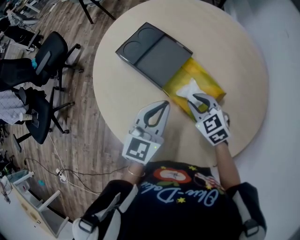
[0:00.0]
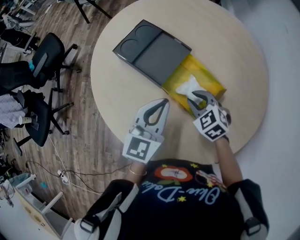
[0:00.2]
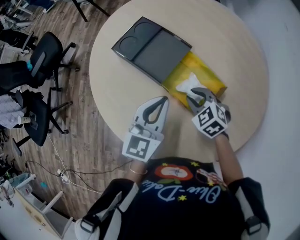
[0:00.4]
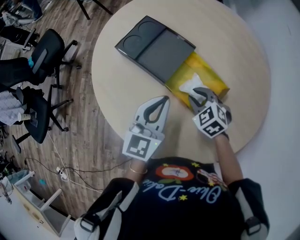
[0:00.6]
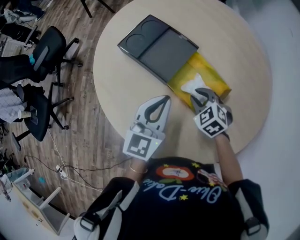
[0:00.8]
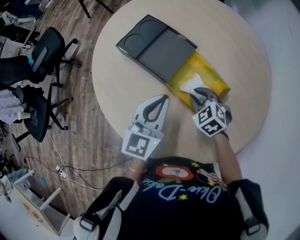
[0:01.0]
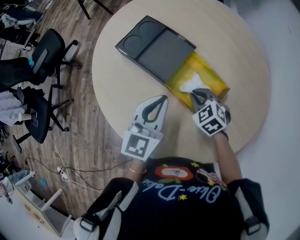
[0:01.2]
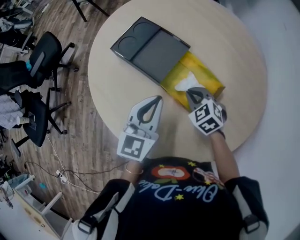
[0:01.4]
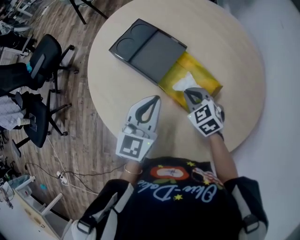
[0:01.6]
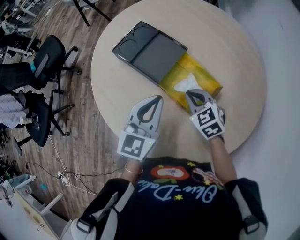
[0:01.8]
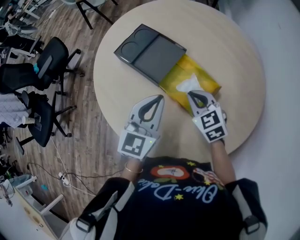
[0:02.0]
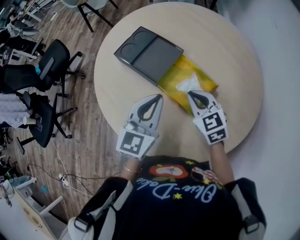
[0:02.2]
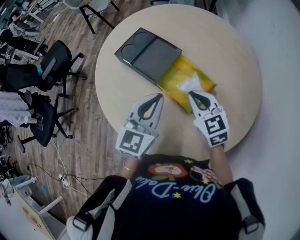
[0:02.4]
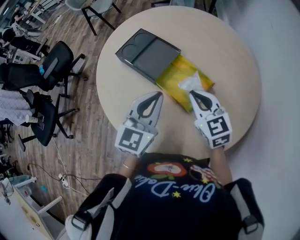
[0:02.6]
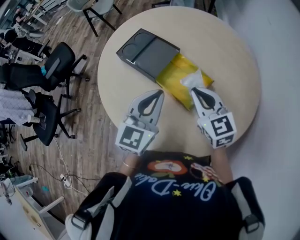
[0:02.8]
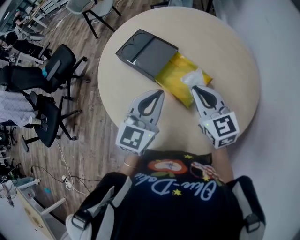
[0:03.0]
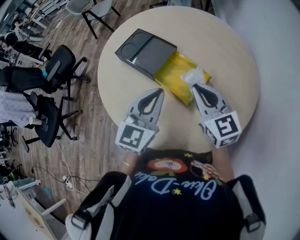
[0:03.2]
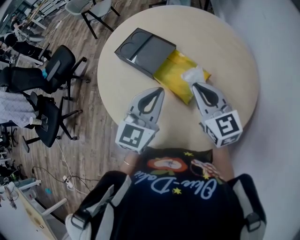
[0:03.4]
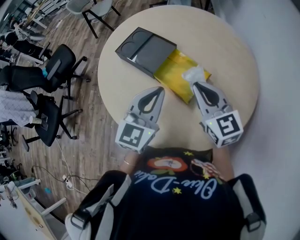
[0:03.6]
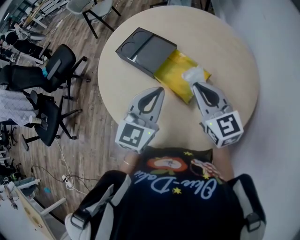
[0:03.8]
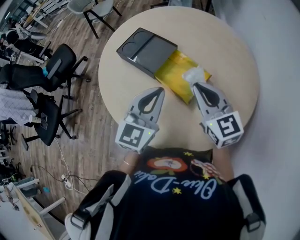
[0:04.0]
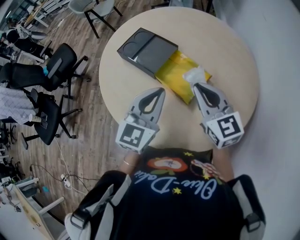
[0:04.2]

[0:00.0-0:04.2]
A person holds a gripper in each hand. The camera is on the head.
0:00.0 to 0:01.4: The grippers stay close to where they were, moving slightly.
0:01.4 to 0:02.8: The left gripper travels upward and backward by about 10 cm, while the right gripper goes some 20 cm upward, and tilts its fingers approximately 30 degrees upward.
0:02.8 to 0:04.2: The right gripper shifts by some 5 cm.

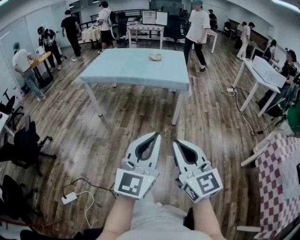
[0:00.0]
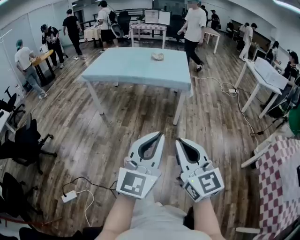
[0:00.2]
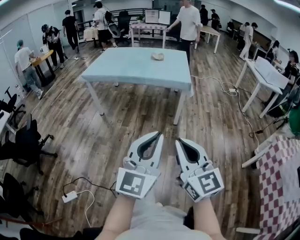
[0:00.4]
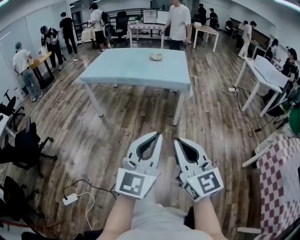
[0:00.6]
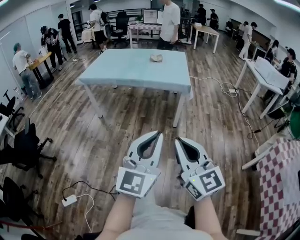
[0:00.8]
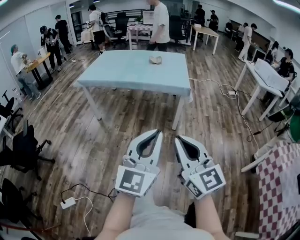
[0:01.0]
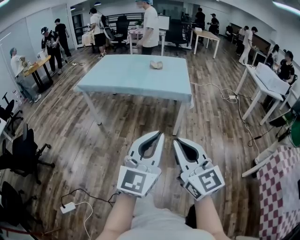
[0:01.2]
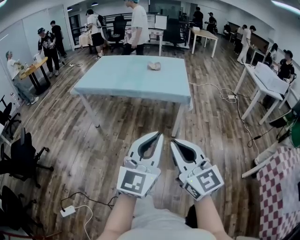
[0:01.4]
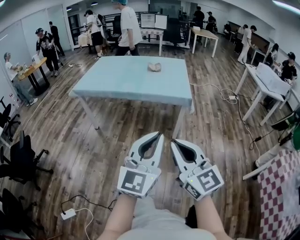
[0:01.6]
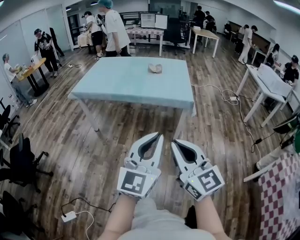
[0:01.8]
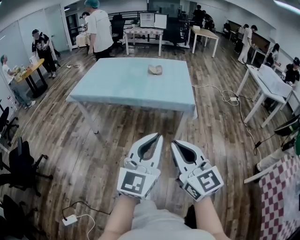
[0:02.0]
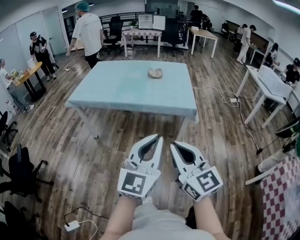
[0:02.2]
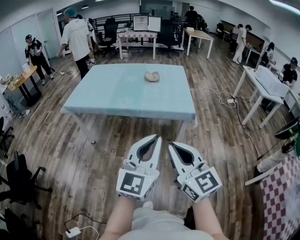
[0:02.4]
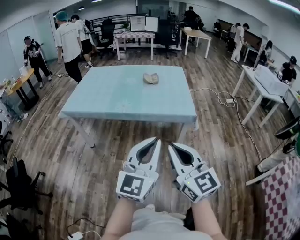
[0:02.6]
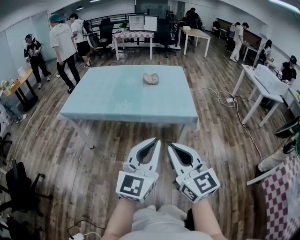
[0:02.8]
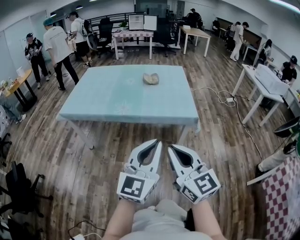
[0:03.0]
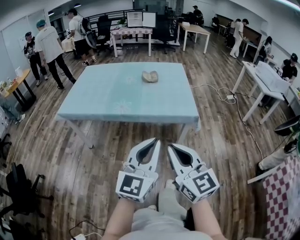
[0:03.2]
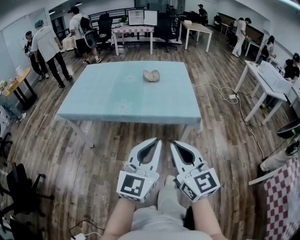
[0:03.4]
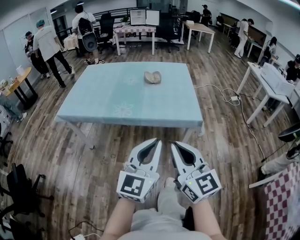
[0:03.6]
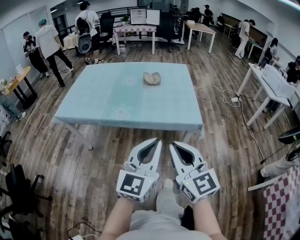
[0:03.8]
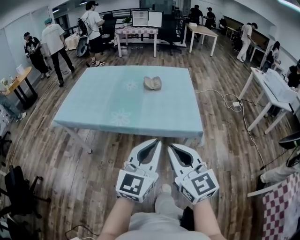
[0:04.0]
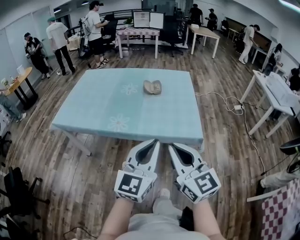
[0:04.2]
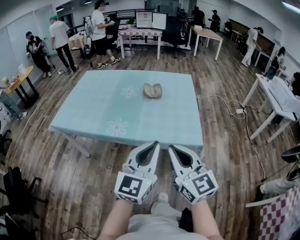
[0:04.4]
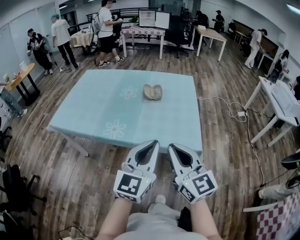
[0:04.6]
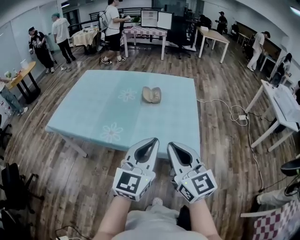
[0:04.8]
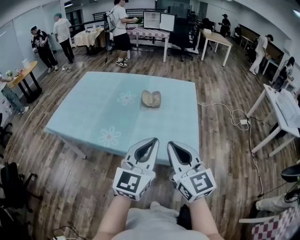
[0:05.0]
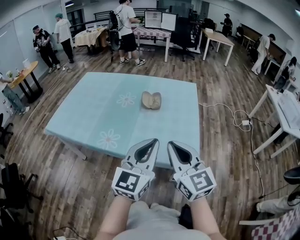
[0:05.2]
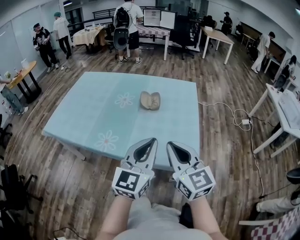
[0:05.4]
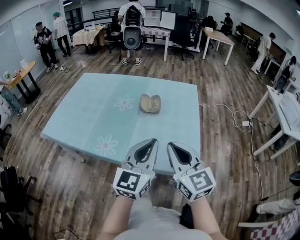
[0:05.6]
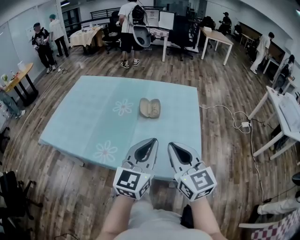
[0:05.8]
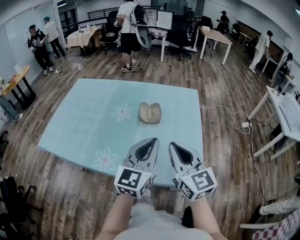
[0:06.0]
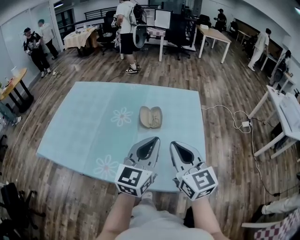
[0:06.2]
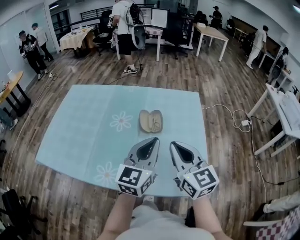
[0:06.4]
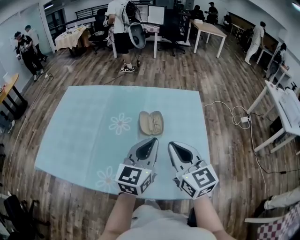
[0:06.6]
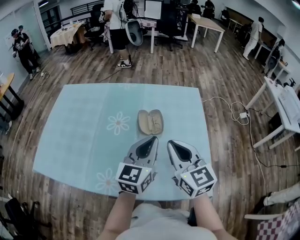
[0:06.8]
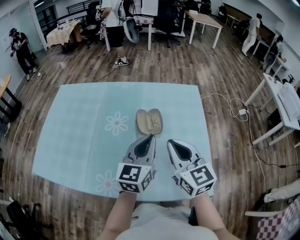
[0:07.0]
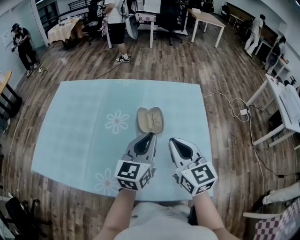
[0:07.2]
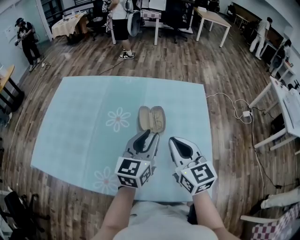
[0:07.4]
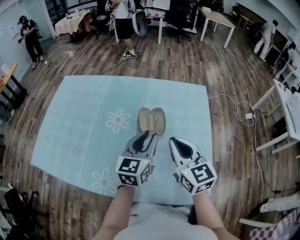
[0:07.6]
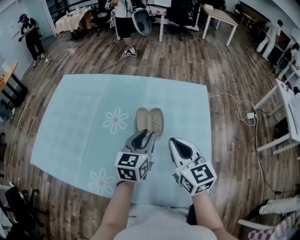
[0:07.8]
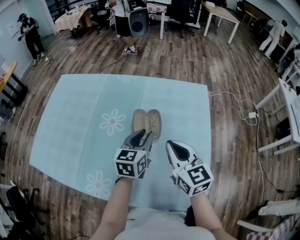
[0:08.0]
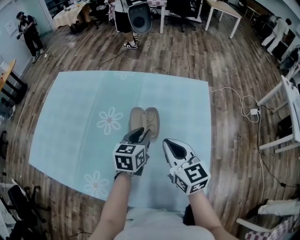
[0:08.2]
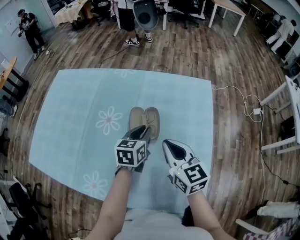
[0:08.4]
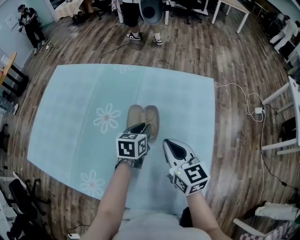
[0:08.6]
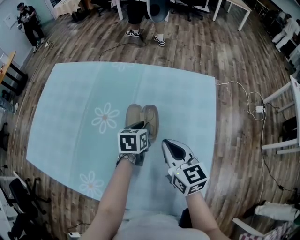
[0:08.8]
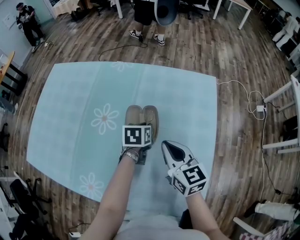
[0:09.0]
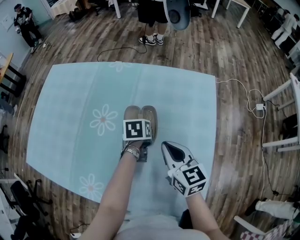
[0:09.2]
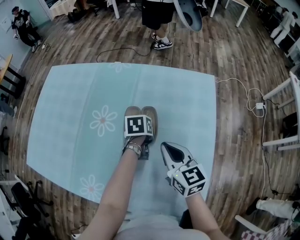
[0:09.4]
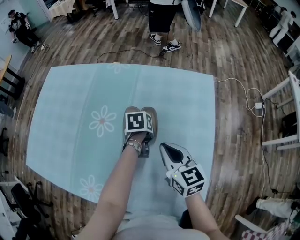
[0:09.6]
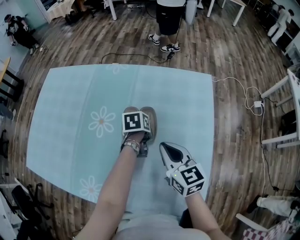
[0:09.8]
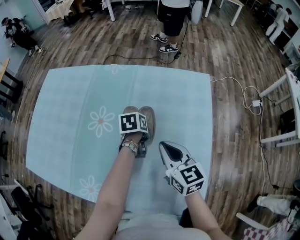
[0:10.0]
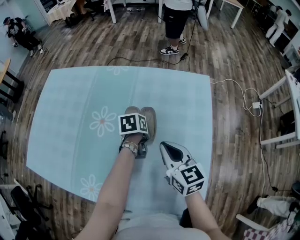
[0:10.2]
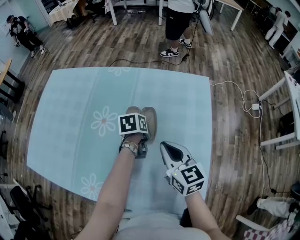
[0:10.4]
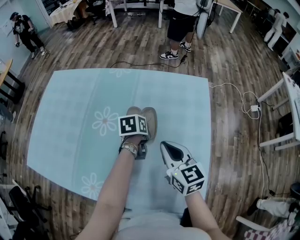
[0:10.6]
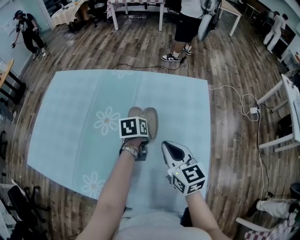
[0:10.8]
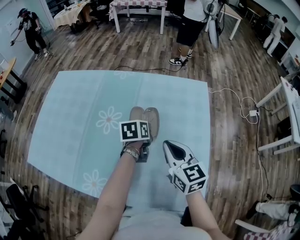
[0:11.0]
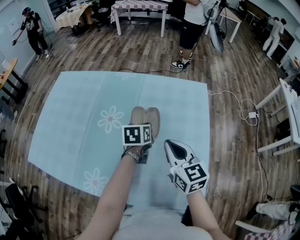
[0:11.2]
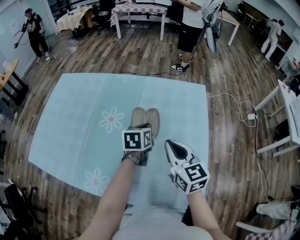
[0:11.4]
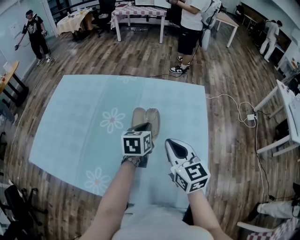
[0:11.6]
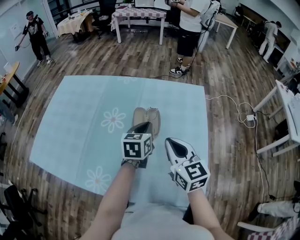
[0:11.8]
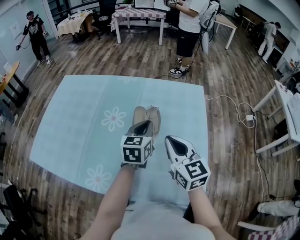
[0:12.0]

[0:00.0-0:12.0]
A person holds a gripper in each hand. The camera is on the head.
0:00.0 to 0:01.6: Both grippers travel together forward, approximately 20 cm.
0:01.6 to 0:03.0: The grippers both shift forward by approximately 20 cm.
0:03.0 to 0:04.4: The two grippers go approximately 20 cm forward.
0:04.4 to 0:06.0: The grippers both shift forward by about 25 cm.
0:06.0 to 0:07.6: The left gripper shifts about 20 cm forward and downward, and opens, while the right gripper travels forward by approximately 20 cm.
0:07.6 to 0:09.0: The right gripper goes approximately 15 cm downward and forward. Meanwhile the left gripper is displaced downward and forward by about 25 cm, and tips its fingers downward by approximately 40 degrees.
0:09.0 to 0:10.4: There are only small adjustments of the grippers.
0:10.4 to 0:12.0: The right gripper travels upward and backward by approximately 10 cm. The left gripper heads upward and backward, covering some 20 cm, and tips its fingers upward by approximately 30 degrees.

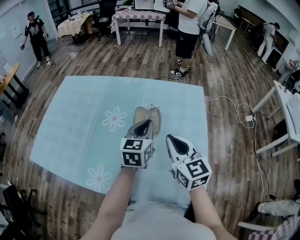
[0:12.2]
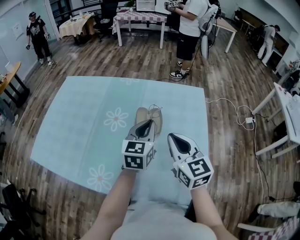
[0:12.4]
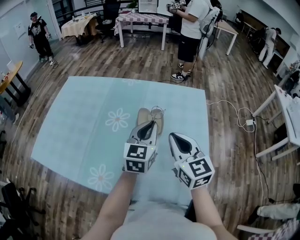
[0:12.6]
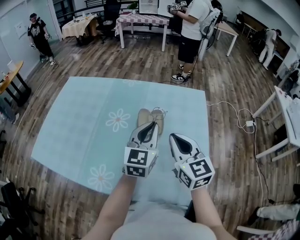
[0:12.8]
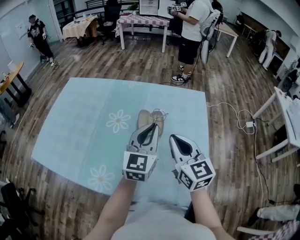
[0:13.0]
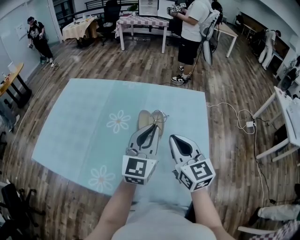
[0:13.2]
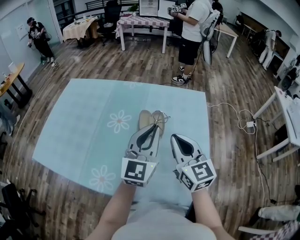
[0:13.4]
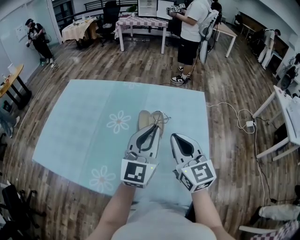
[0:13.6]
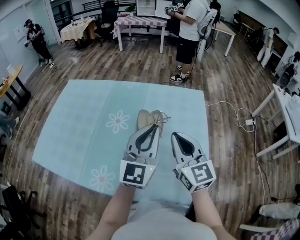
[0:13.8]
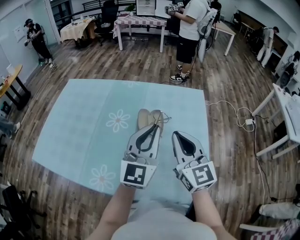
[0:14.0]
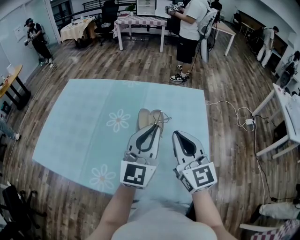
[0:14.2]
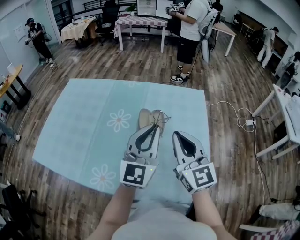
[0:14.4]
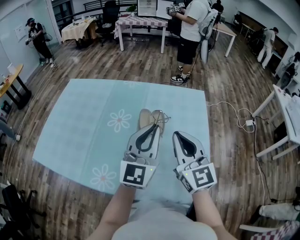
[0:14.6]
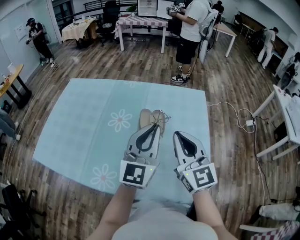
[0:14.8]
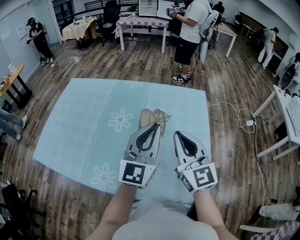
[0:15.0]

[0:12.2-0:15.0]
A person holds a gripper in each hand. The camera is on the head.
0:12.2 to 0:13.6: The left gripper goes approximately 15 cm upward and backward, and turns by some 30 degrees.
0:13.6 to 0:15.0: The grippers make only small movements.

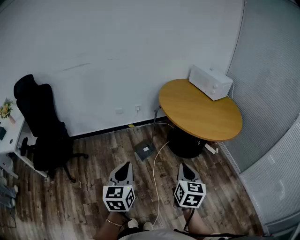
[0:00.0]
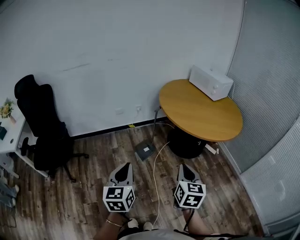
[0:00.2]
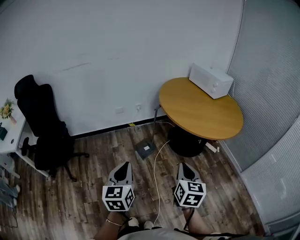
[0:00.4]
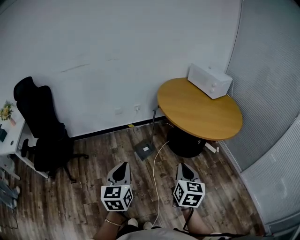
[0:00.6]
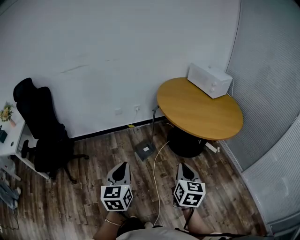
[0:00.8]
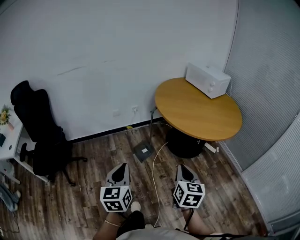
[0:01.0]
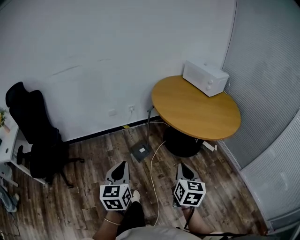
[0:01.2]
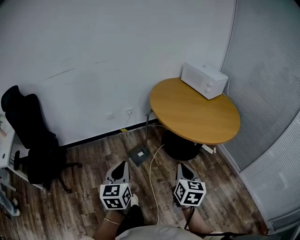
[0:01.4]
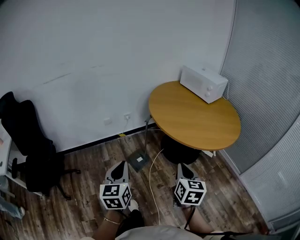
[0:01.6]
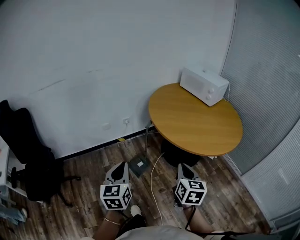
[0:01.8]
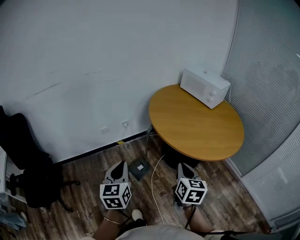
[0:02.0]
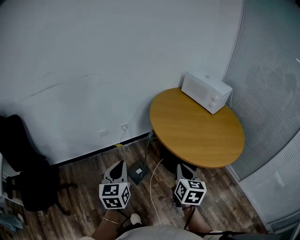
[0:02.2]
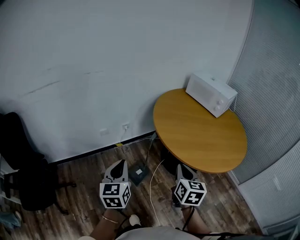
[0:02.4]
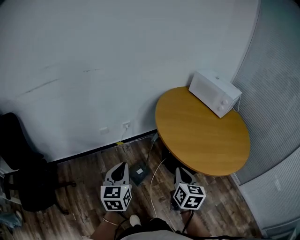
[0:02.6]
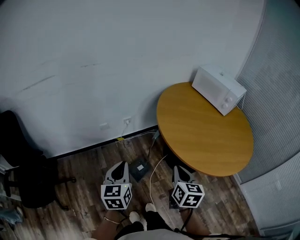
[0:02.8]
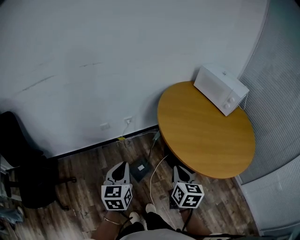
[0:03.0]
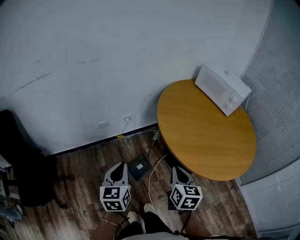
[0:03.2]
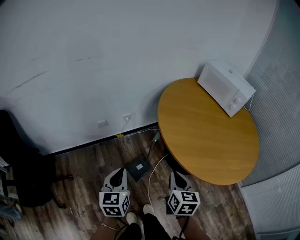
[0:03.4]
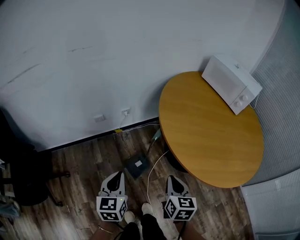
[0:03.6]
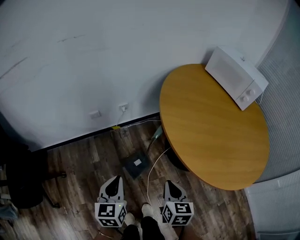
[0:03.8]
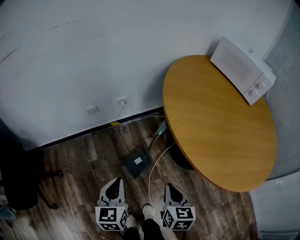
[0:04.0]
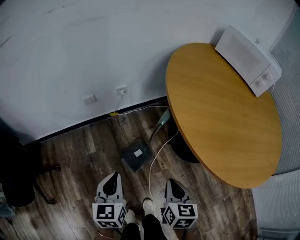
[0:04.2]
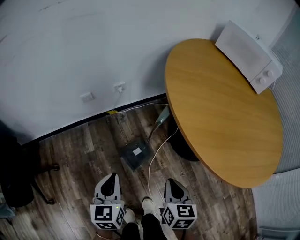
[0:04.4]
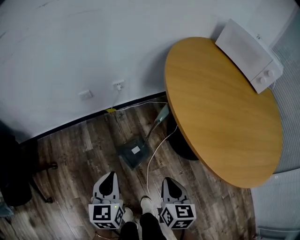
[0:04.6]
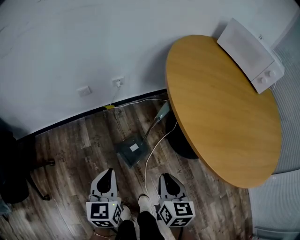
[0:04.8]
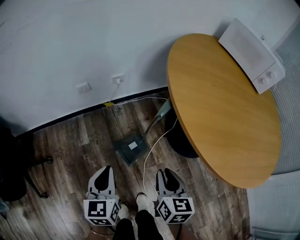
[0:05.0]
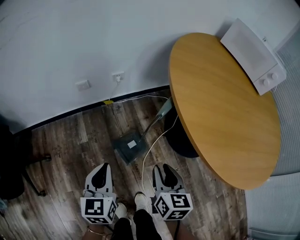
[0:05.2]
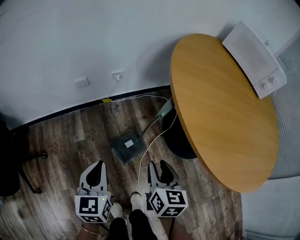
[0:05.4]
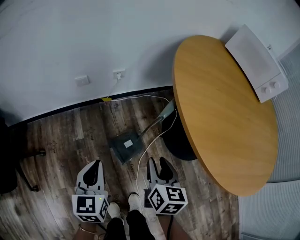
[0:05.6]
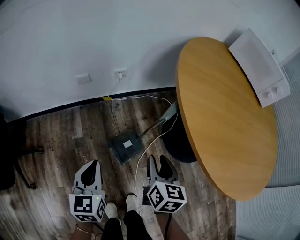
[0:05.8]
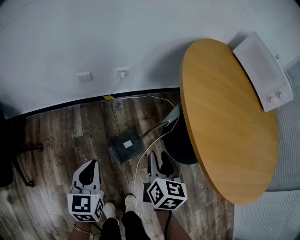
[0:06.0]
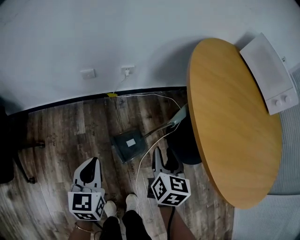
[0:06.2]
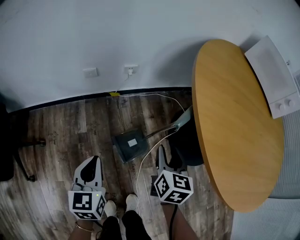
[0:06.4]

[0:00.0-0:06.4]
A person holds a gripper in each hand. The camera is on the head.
0:00.0 to 0:01.6: The grippers both shift forward by approximately 15 cm.
0:01.6 to 0:03.2: Both grippers travel together forward, approximately 25 cm.
0:03.2 to 0:04.8: Both grippers move downward, roughly 25 cm.
0:04.8 to 0:06.4: The right gripper is displaced forward by approximately 15 cm, and opens. Meanwhile the left gripper is displaced to the left by roughly 5 cm.
